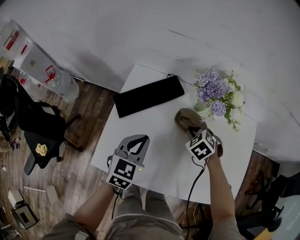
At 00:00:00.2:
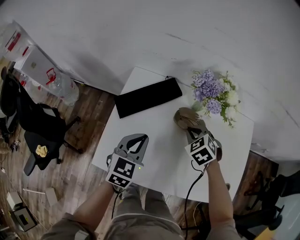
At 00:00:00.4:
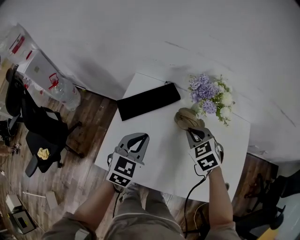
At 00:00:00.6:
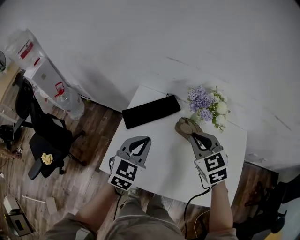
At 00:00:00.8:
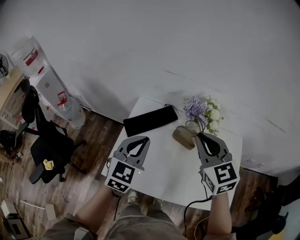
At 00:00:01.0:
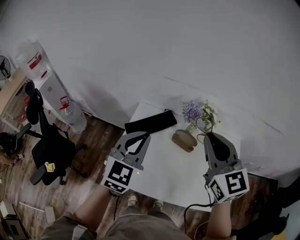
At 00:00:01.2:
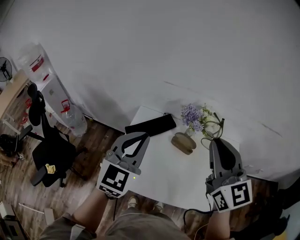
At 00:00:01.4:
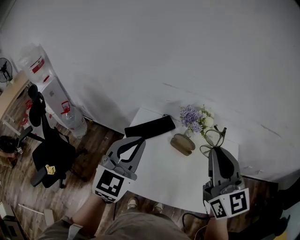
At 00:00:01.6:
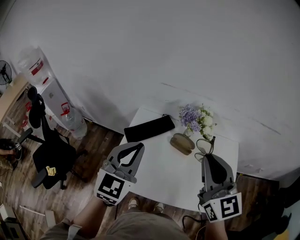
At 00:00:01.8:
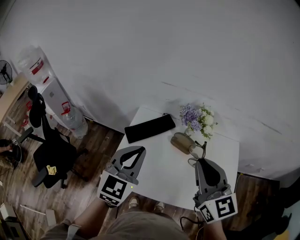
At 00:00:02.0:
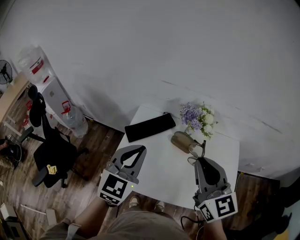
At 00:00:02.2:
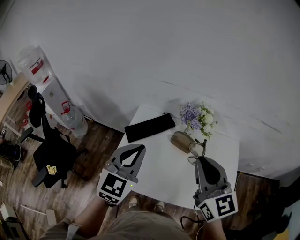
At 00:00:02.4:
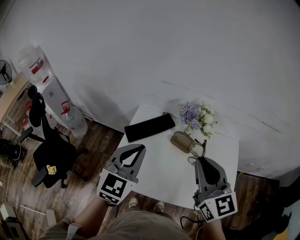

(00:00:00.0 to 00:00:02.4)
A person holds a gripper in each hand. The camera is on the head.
00:00:00.0 - 00:00:01.2: The left gripper travels upward by about 30 cm, and rotates some 30 degrees, while the right gripper travels upward by about 40 cm, and angles its fingers upward, by about 70 degrees.
00:00:01.2 - 00:00:02.4: The right gripper moves downward, approximately 5 cm.

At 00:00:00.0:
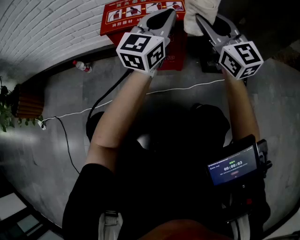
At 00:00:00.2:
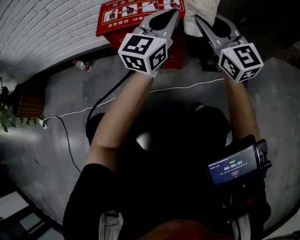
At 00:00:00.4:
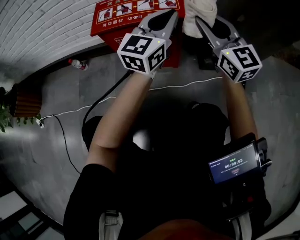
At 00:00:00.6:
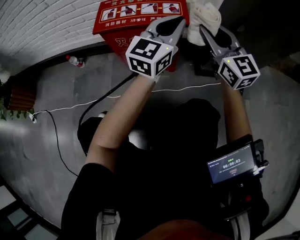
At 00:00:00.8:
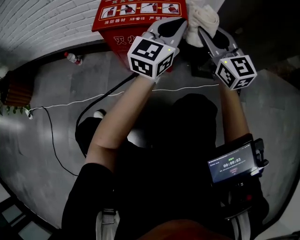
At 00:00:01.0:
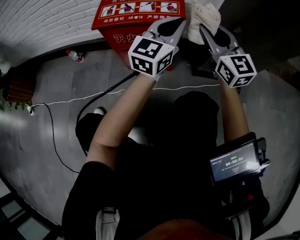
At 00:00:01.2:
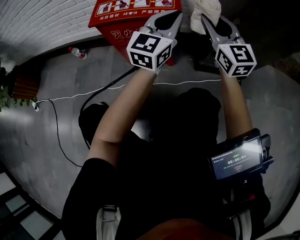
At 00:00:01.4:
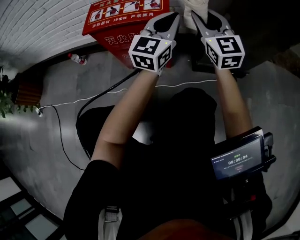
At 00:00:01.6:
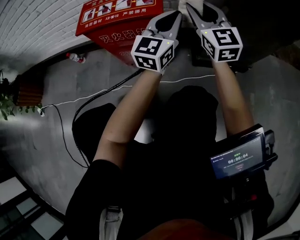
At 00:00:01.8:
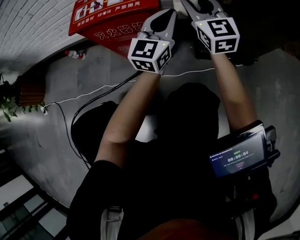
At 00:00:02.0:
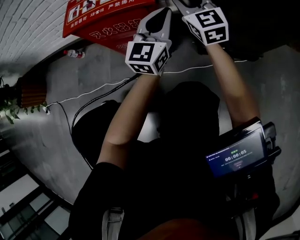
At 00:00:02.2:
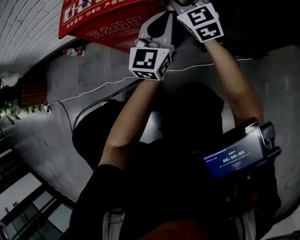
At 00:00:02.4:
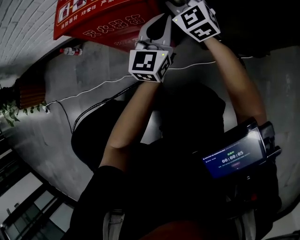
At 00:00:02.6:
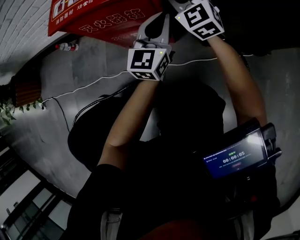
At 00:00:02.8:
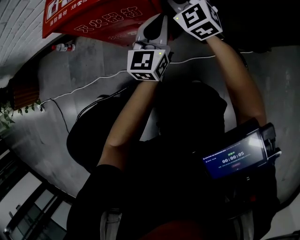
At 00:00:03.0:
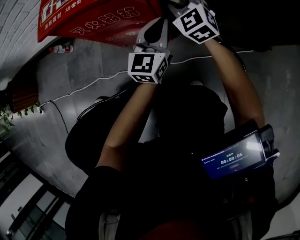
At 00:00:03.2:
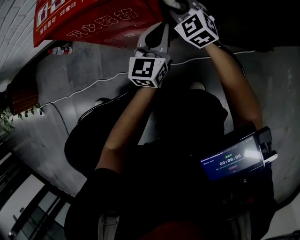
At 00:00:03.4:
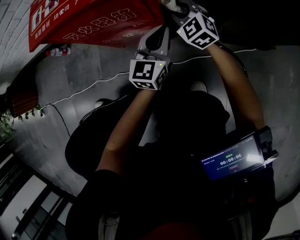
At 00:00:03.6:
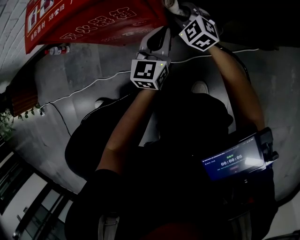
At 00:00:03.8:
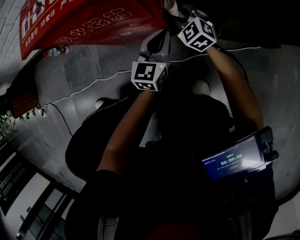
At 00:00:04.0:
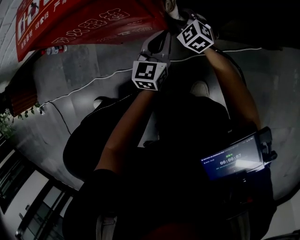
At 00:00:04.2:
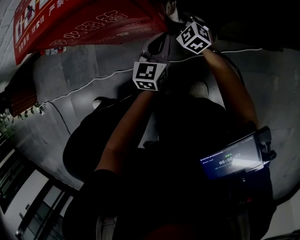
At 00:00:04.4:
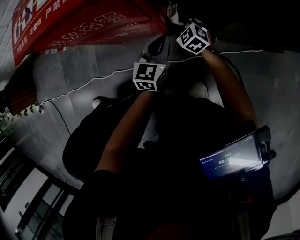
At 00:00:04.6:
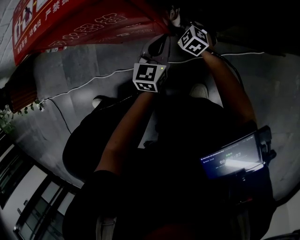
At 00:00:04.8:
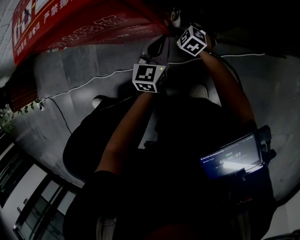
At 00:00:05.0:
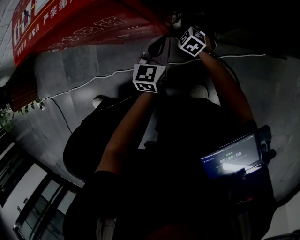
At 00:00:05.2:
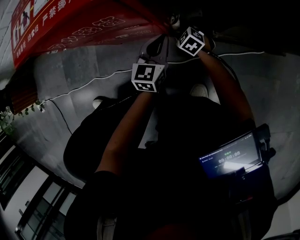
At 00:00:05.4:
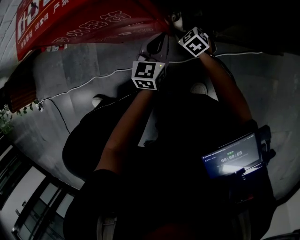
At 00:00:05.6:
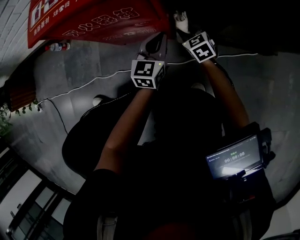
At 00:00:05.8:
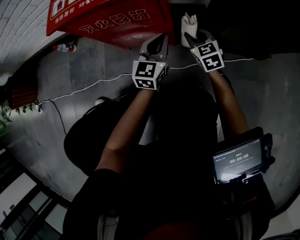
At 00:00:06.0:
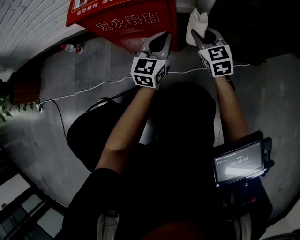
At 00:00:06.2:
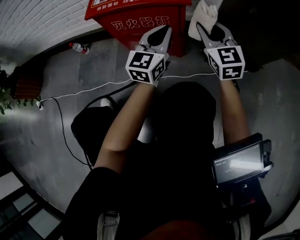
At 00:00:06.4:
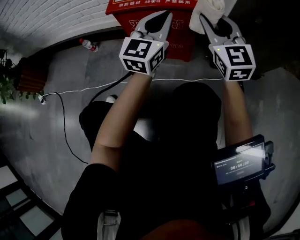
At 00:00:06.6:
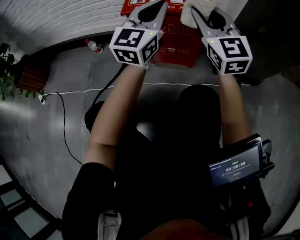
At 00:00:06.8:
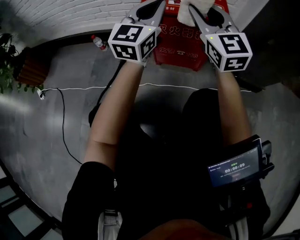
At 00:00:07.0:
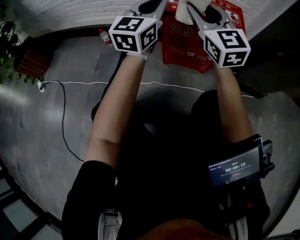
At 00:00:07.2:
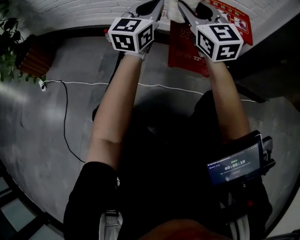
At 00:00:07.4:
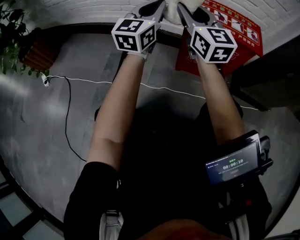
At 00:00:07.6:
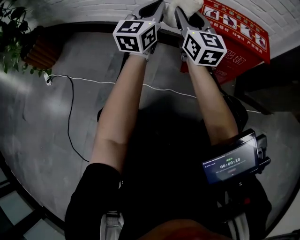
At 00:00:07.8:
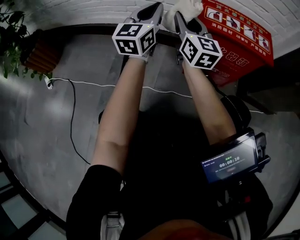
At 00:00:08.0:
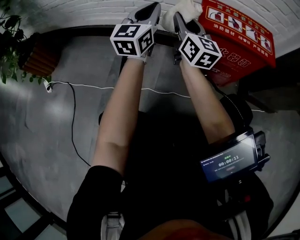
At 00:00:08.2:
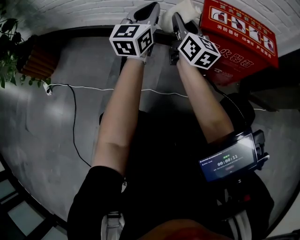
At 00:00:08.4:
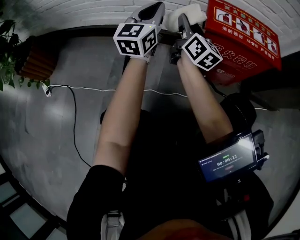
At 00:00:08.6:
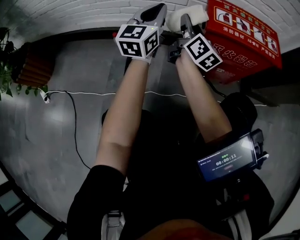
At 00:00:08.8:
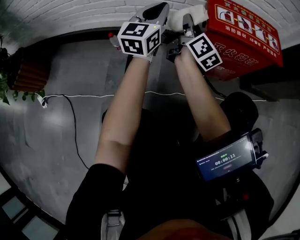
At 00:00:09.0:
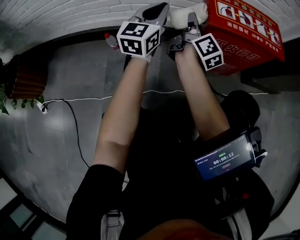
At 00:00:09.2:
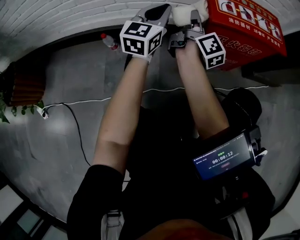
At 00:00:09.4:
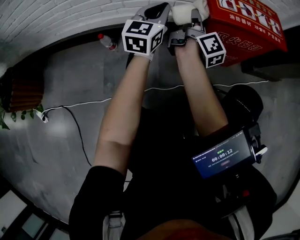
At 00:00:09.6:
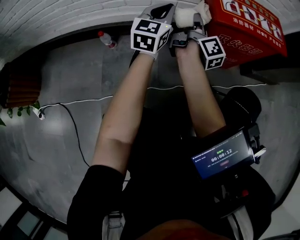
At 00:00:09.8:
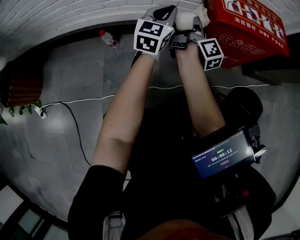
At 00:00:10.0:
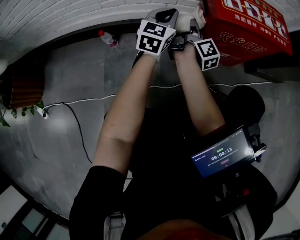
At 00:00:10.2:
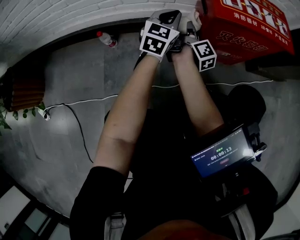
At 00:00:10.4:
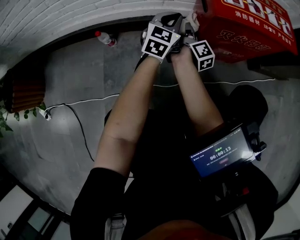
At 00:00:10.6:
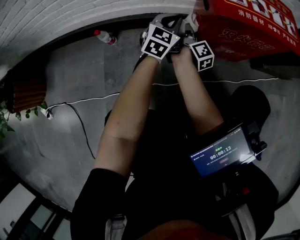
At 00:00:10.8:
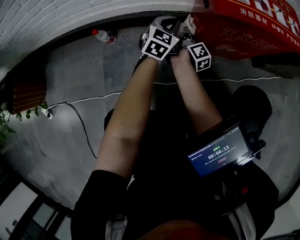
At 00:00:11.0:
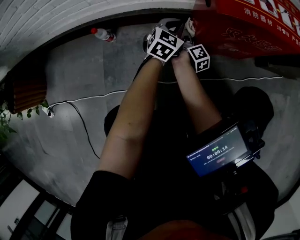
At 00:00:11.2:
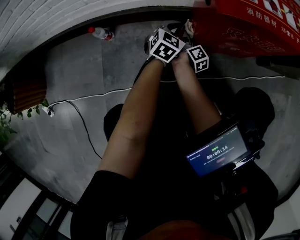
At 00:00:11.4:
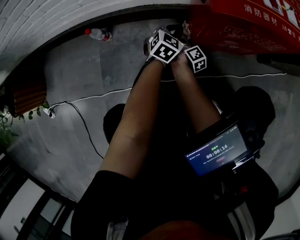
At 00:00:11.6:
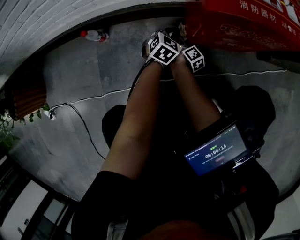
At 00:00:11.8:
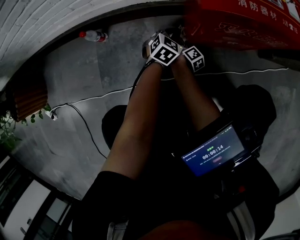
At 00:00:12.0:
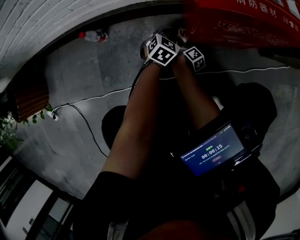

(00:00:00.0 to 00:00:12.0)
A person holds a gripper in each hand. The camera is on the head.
00:00:00.0 - 00:00:01.6: The right gripper goes about 15 cm forward, downward and to the right. Meanwhile the left gripper shifts roughly 15 cm downward, to the right and forward.
00:00:01.6 - 00:00:03.0: The grippers both shift downward by roughly 20 cm. The right gripper changes its angle by about 30 degrees.
00:00:03.0 - 00:00:04.4: The right gripper shifts some 25 cm downward, and changes its angle by approximately 20 degrees; the left gripper is displaced downward by roughly 15 cm.
00:00:04.4 - 00:00:06.0: The two grippers go about 20 cm upward. The right gripper changes its angle by about 30 degrees.
00:00:06.0 - 00:00:07.6: Both grippers are carried to the left, approximately 40 cm. Both grippers travel together upward, some 25 cm. The left gripper changes its angle by some 20 degrees. Meanwhile the right gripper swivels approximately 30 degrees.
00:00:07.6 - 00:00:09.0: Both grippers travel together downward and forward, about 15 cm. The right gripper rolls clockwise, seen from behind, by some 50 degrees.
00:00:09.0 - 00:00:10.4: Both grippers travel together downward, approximately 15 cm. The left gripper swivels roughly 20 degrees; the right gripper turns by roughly 20 degrees.
00:00:10.4 - 00:00:12.0: Both grippers travel together downward, approximately 25 cm. The right gripper rotates approximately 20 degrees; the left gripper turns by some 30 degrees.

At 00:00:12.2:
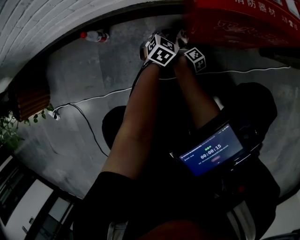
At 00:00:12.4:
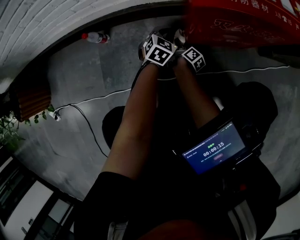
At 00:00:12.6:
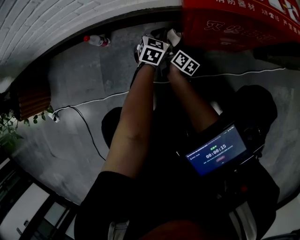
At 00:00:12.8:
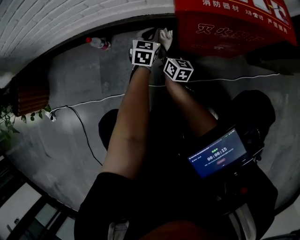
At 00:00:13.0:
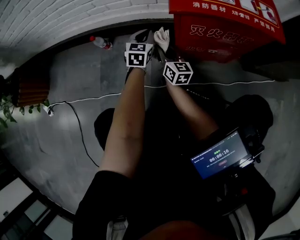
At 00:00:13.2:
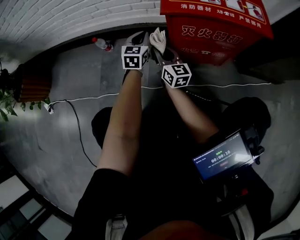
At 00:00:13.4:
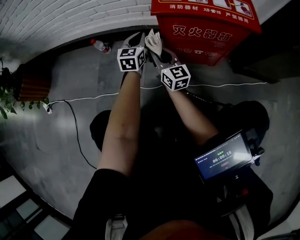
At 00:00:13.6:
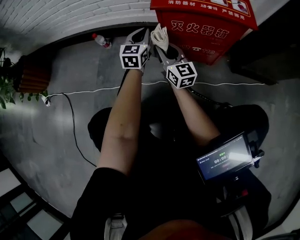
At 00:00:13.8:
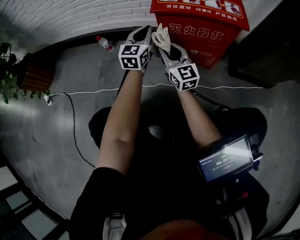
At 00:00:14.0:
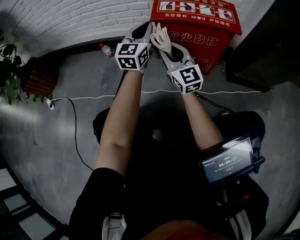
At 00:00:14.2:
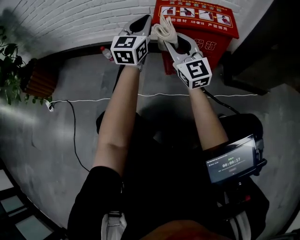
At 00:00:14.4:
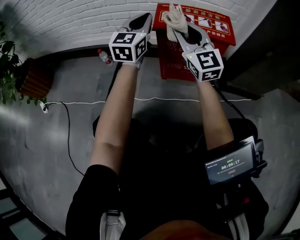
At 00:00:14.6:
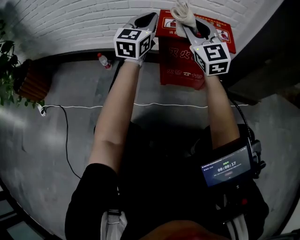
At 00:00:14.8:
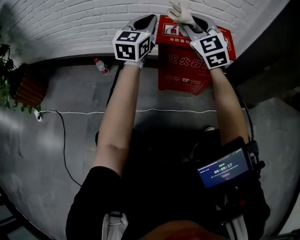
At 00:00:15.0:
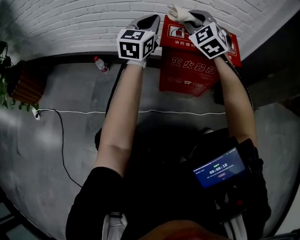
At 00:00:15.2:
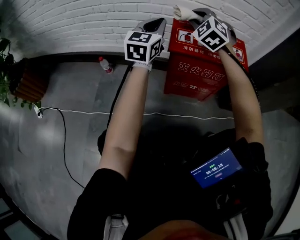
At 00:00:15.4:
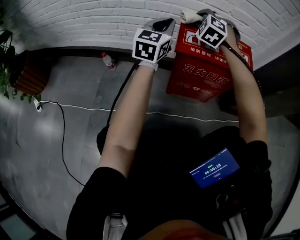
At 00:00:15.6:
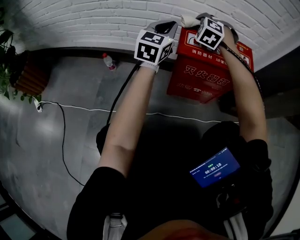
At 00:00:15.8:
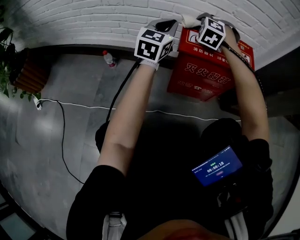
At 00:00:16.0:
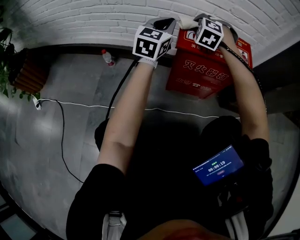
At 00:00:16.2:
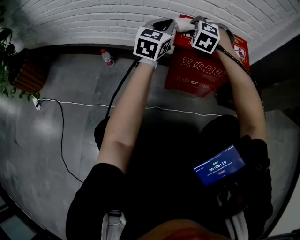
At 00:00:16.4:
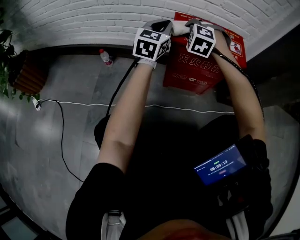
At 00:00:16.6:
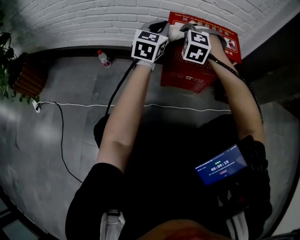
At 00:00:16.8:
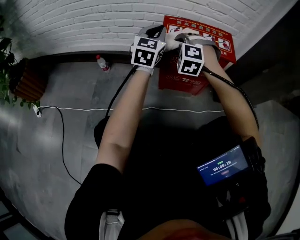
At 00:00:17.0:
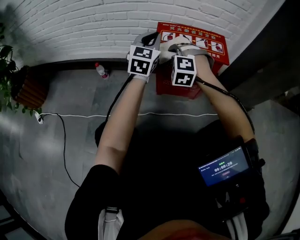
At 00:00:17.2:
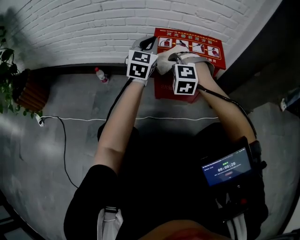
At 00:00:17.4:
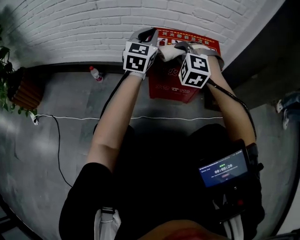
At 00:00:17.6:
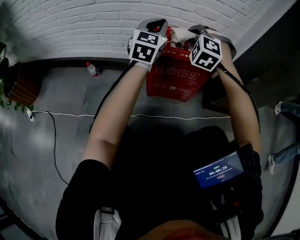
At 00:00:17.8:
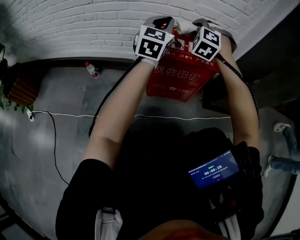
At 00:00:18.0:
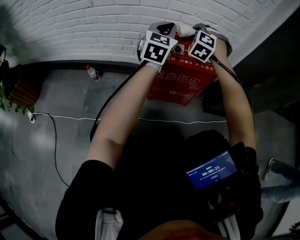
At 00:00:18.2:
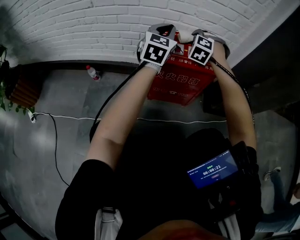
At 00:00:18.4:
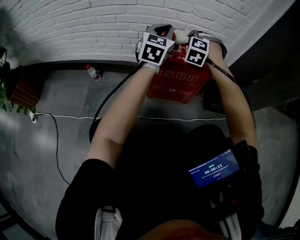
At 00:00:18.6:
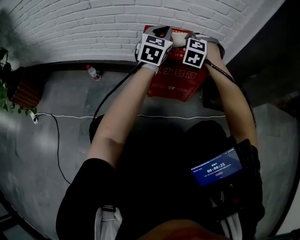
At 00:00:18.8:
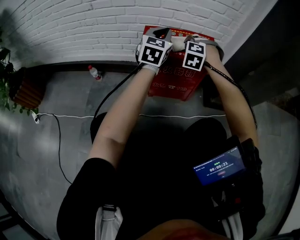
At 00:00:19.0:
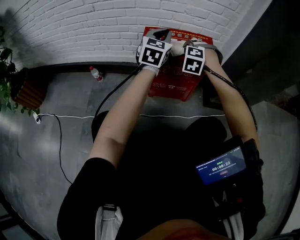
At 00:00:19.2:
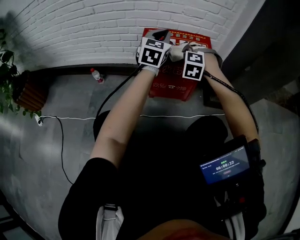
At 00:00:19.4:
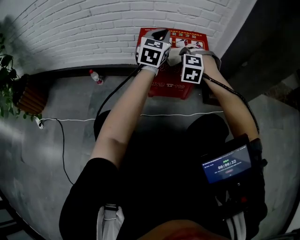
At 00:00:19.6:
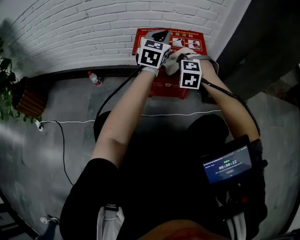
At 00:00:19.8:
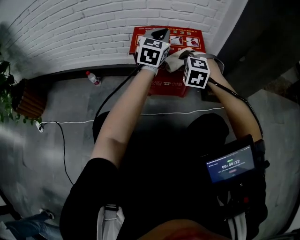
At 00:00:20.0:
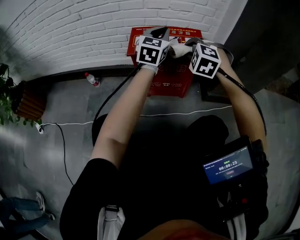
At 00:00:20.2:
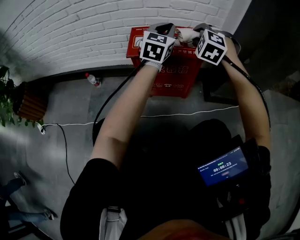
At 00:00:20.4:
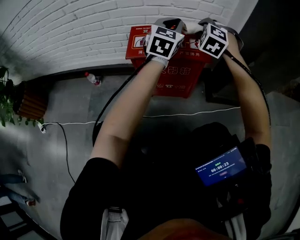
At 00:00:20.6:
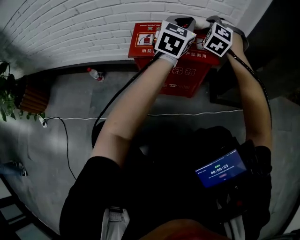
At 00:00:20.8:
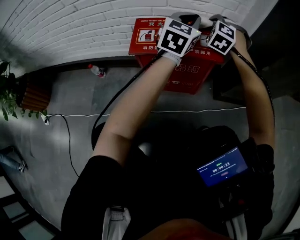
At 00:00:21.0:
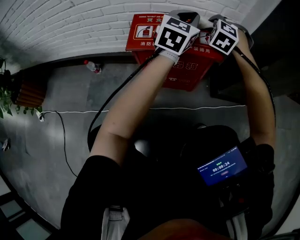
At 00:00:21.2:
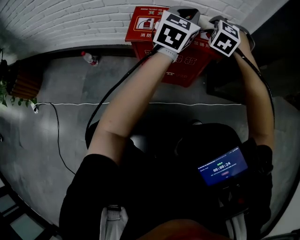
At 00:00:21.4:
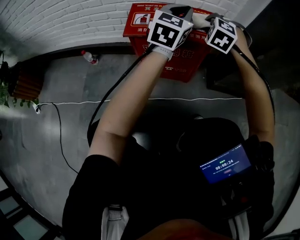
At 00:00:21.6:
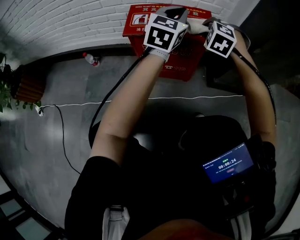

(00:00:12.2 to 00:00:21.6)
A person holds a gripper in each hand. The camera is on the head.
00:00:12.2 - 00:00:13.8: Both grippers travel together upward, some 40 cm. The right gripper twists roughly 80 degrees counterclockwise, seen from behind. Meanwhile the left gripper angles its fingers upward, by approximately 40 degrees.
00:00:13.8 - 00:00:15.4: The left gripper shifts about 20 cm upward and forward, while the right gripper travels forward and upward by approximately 30 cm, and twists some 70 degrees counterclockwise, seen from behind.
00:00:15.4 - 00:00:17.0: The left gripper shifts some 10 cm backward and to the right; the right gripper goes some 20 cm backward.
00:00:17.0 - 00:00:18.4: The right gripper travels forward and to the right by about 20 cm. Meanwhile the left gripper shifts roughly 10 cm forward and to the right.
00:00:18.4 - 00:00:20.0: The right gripper is displaced backward and to the right by roughly 15 cm. Meanwhile the left gripper is displaced to the right by about 10 cm.
00:00:20.0 - 00:00:21.6: The right gripper travels forward by some 5 cm, while the left gripper goes about 5 cm to the right.
